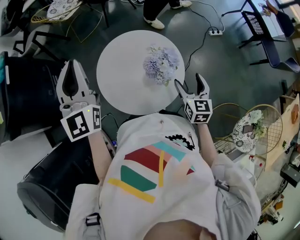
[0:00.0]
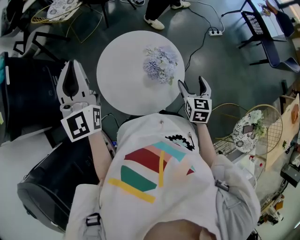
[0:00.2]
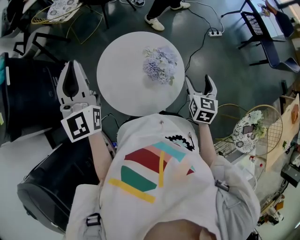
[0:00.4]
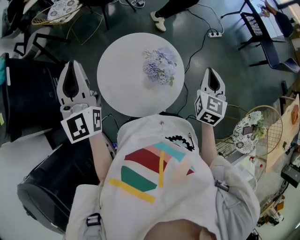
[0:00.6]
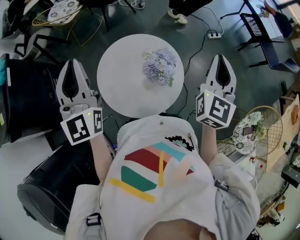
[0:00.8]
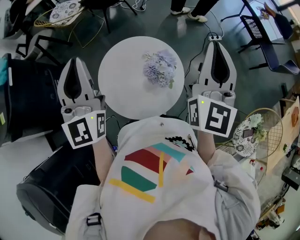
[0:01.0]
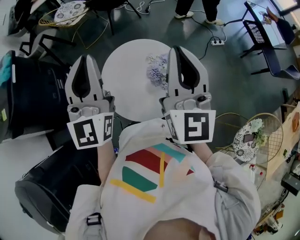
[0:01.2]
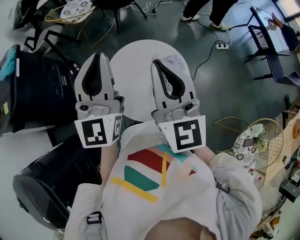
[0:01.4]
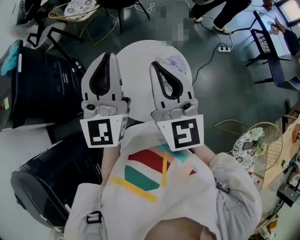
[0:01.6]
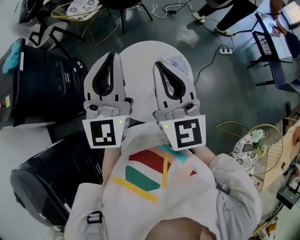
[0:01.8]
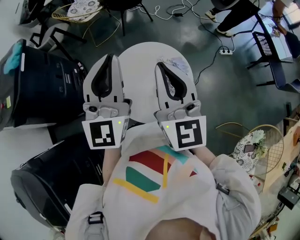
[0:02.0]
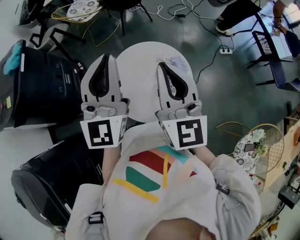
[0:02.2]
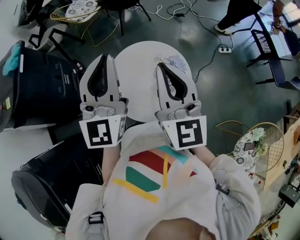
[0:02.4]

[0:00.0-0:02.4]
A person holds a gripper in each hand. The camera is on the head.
0:00.0 to 0:01.2: The right gripper goes approximately 30 cm upward, tilts its fingers some 30 degrees upward, and closes its fingers. The left gripper moves upward and to the right, approximately 10 cm.
0:01.2 to 0:02.4: The right gripper is displaced to the left by about 5 cm.

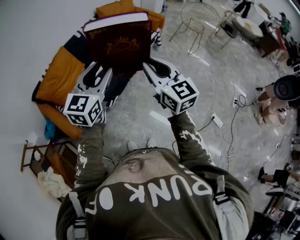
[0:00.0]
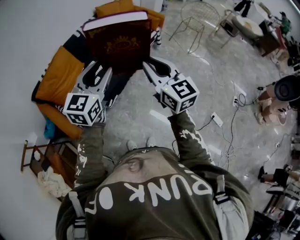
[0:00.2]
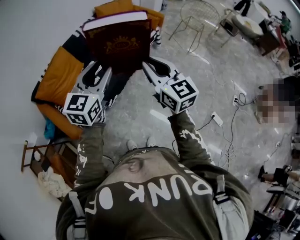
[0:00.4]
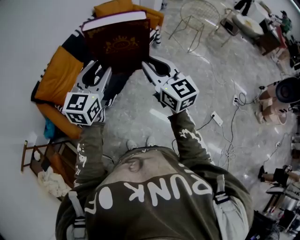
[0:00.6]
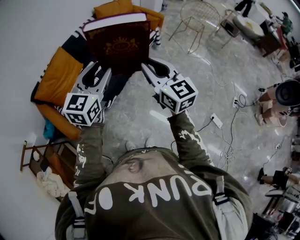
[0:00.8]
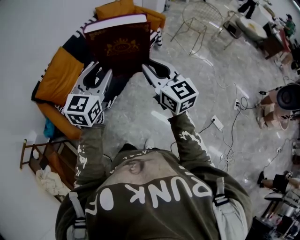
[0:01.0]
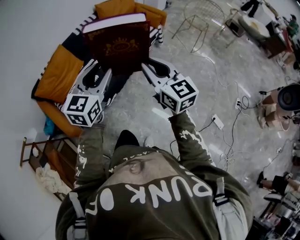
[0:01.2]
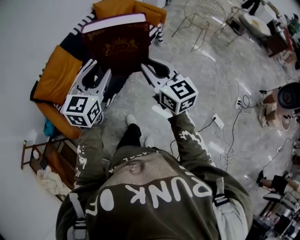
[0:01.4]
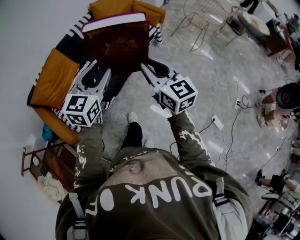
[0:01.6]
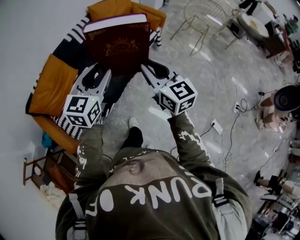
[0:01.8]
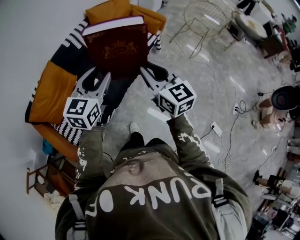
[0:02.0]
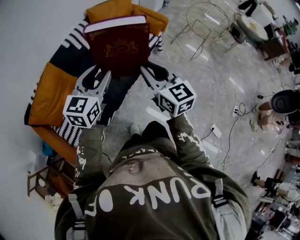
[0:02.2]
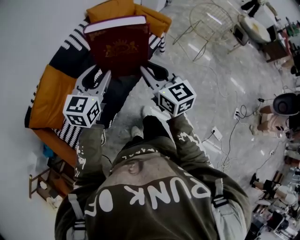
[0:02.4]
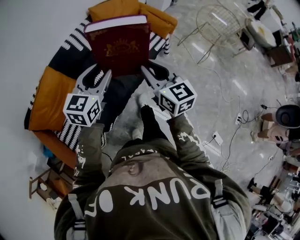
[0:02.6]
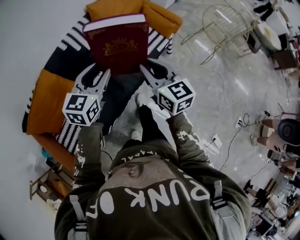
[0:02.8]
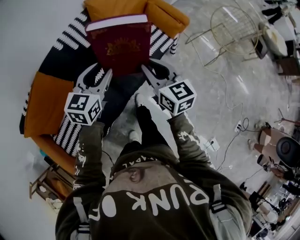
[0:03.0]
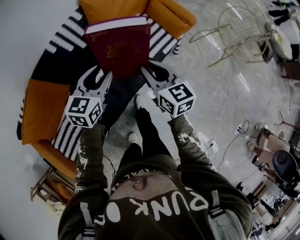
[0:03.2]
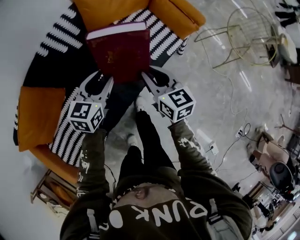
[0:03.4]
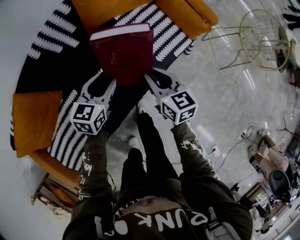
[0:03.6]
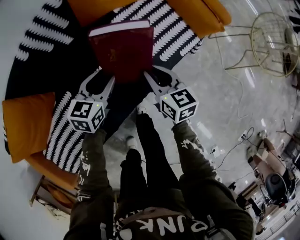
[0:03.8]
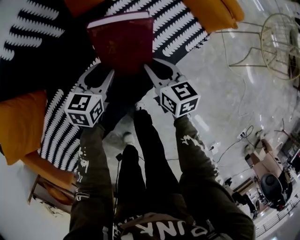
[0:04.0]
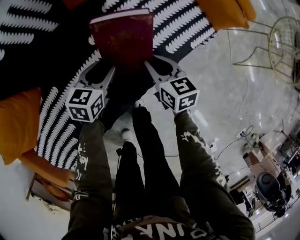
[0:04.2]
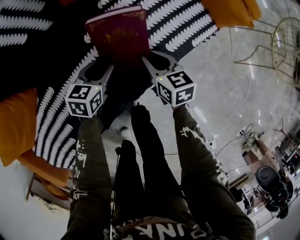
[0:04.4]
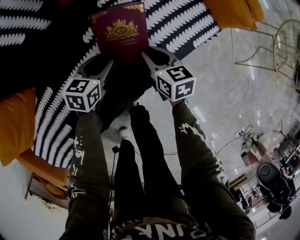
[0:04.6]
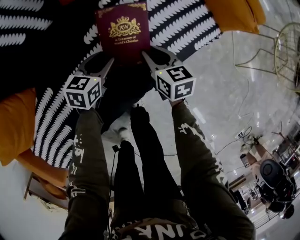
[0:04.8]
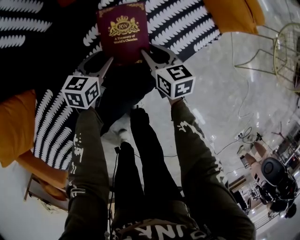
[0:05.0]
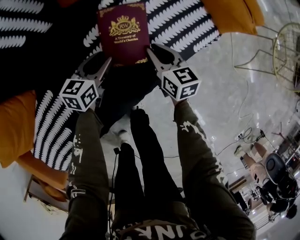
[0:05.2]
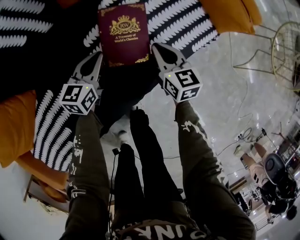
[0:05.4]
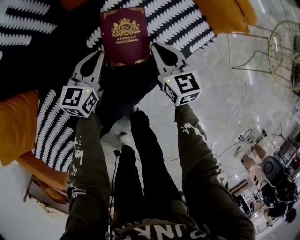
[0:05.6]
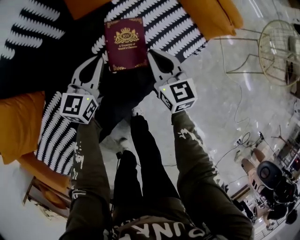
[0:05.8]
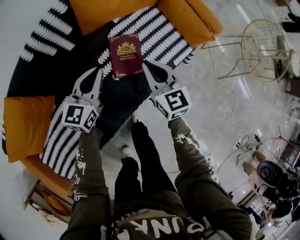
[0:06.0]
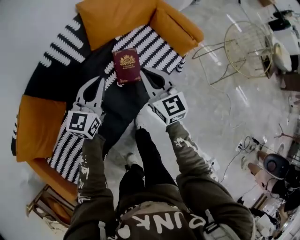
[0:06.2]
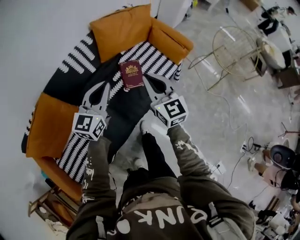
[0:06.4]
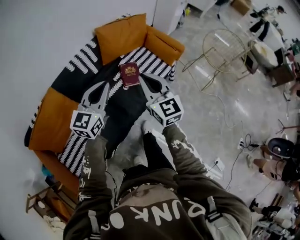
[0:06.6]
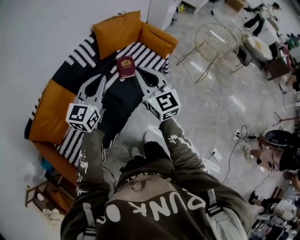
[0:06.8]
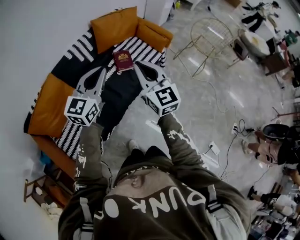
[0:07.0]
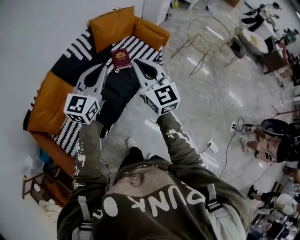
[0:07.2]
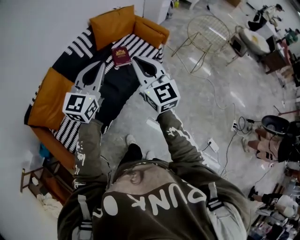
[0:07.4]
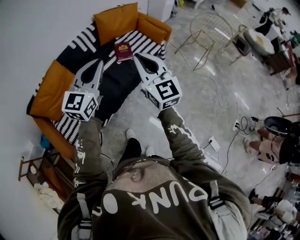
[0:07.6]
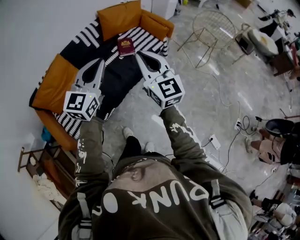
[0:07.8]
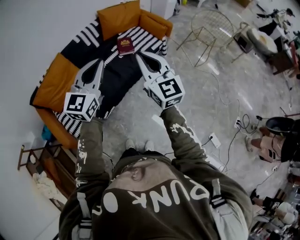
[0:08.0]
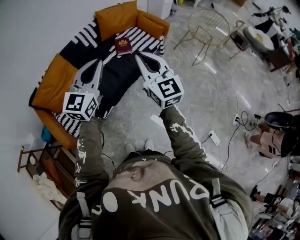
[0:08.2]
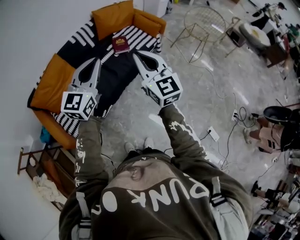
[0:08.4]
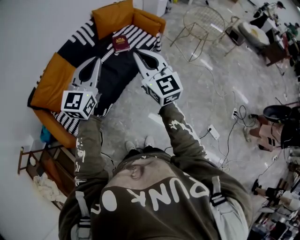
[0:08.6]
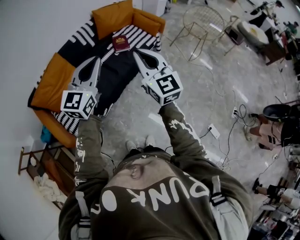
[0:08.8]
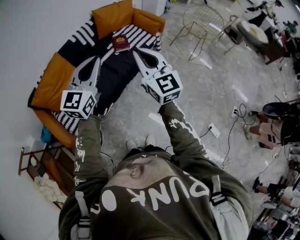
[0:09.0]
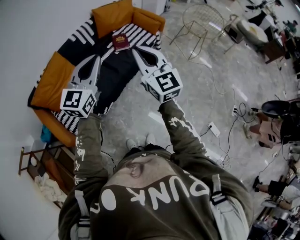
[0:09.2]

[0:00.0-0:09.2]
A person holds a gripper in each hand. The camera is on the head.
0:00.0 to 0:01.6: The two grippers go some 15 cm forward, to the right and downward.
0:01.6 to 0:03.0: The pair of grippers is taken forward, some 50 cm.
0:03.0 to 0:04.6: The right gripper heads downward and forward, covering roughly 60 cm, and changes its angle by roughly 30 degrees, while the left gripper is displaced downward by some 50 cm, and rotates some 30 degrees.
0:04.6 to 0:06.2: Both grippers travel together upward, roughly 40 cm. The left gripper tips its fingers upward by about 30 degrees, and closes up, while the right gripper swivels some 40 degrees.
0:06.2 to 0:07.6: Both grippers are carried backward, approximately 50 cm. The grippers both shift upward by roughly 35 cm.
0:07.6 to 0:09.2: The grippers both shift backward by some 10 cm.

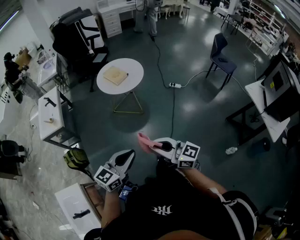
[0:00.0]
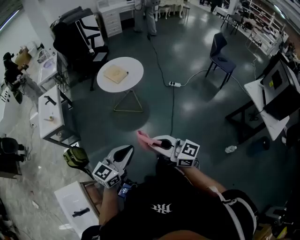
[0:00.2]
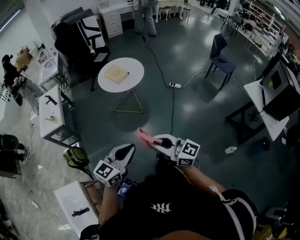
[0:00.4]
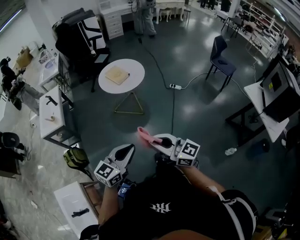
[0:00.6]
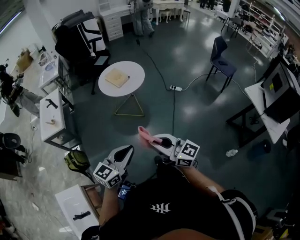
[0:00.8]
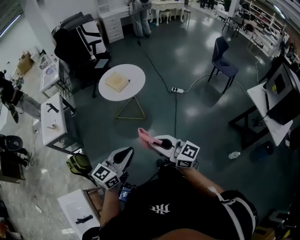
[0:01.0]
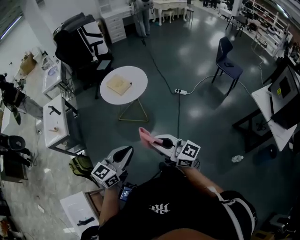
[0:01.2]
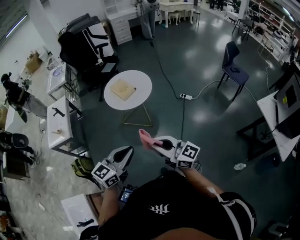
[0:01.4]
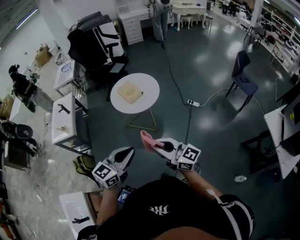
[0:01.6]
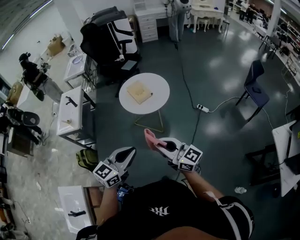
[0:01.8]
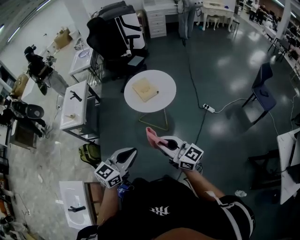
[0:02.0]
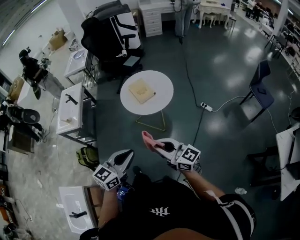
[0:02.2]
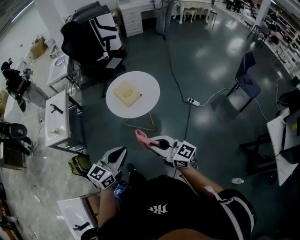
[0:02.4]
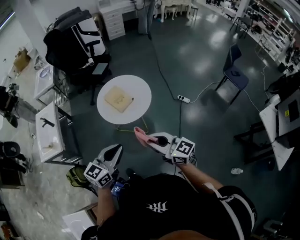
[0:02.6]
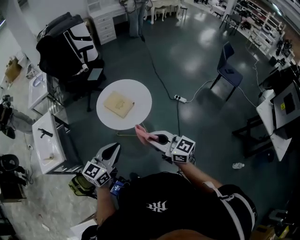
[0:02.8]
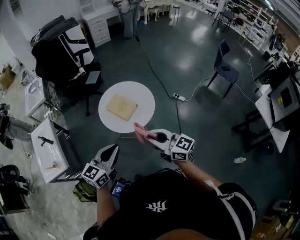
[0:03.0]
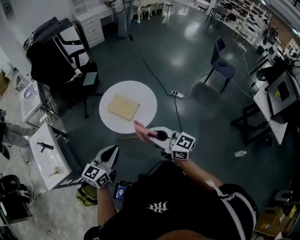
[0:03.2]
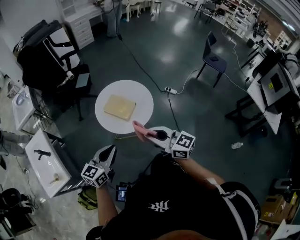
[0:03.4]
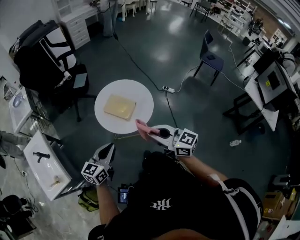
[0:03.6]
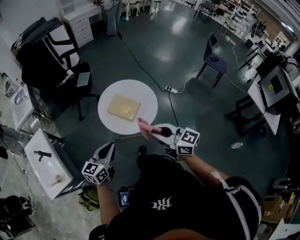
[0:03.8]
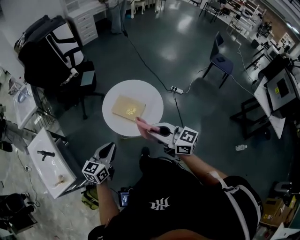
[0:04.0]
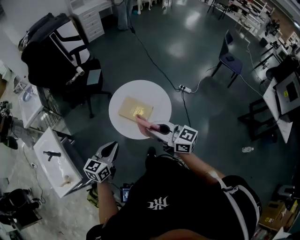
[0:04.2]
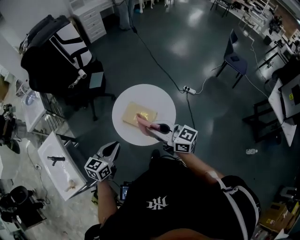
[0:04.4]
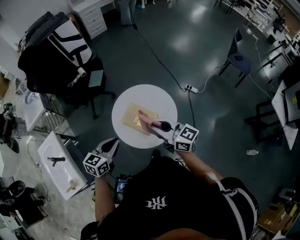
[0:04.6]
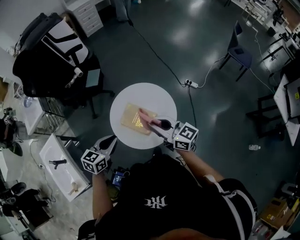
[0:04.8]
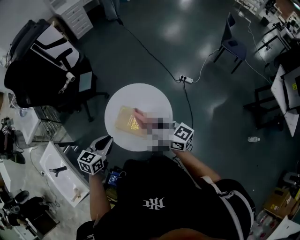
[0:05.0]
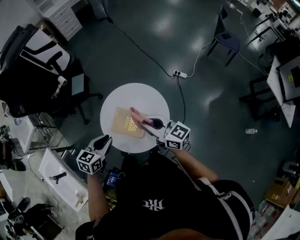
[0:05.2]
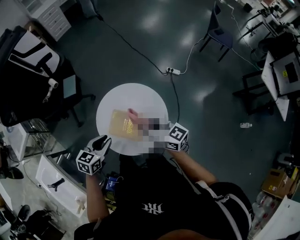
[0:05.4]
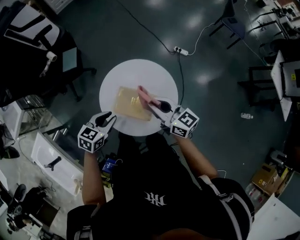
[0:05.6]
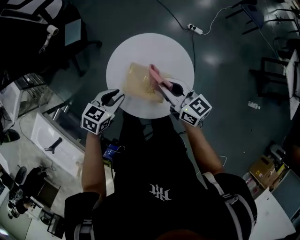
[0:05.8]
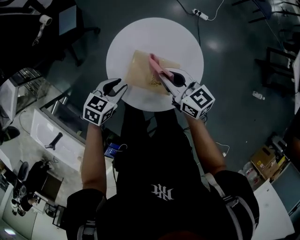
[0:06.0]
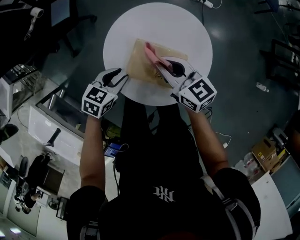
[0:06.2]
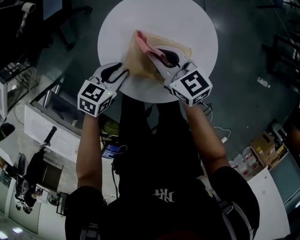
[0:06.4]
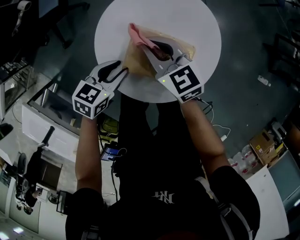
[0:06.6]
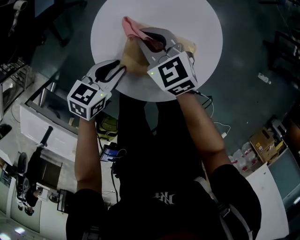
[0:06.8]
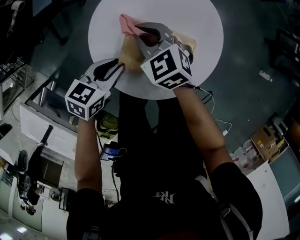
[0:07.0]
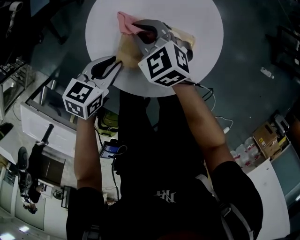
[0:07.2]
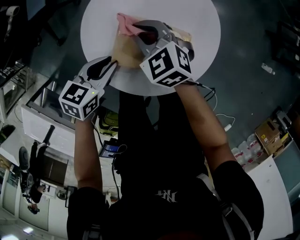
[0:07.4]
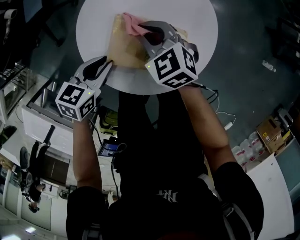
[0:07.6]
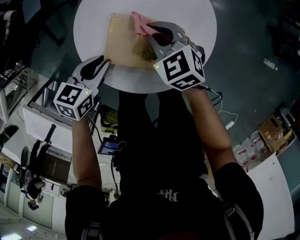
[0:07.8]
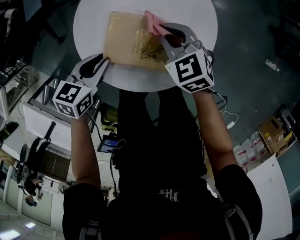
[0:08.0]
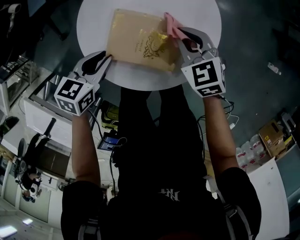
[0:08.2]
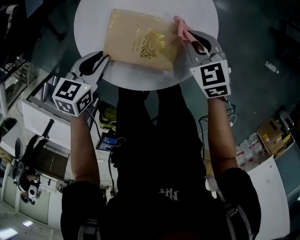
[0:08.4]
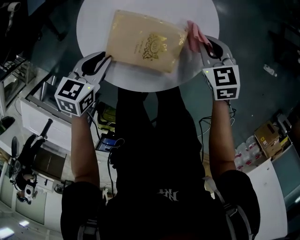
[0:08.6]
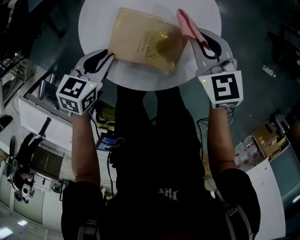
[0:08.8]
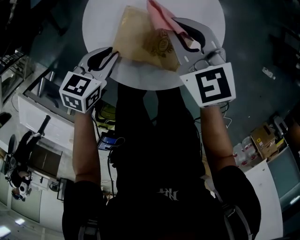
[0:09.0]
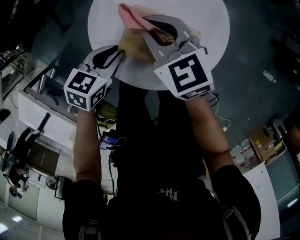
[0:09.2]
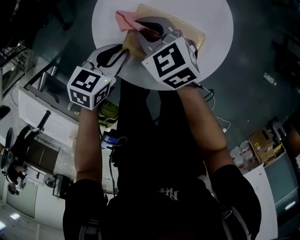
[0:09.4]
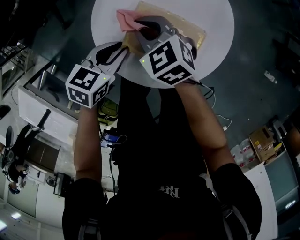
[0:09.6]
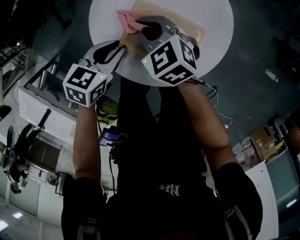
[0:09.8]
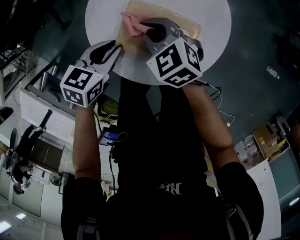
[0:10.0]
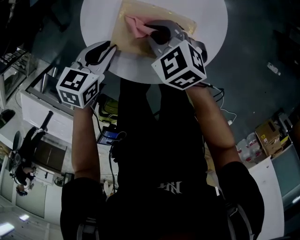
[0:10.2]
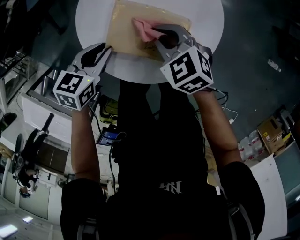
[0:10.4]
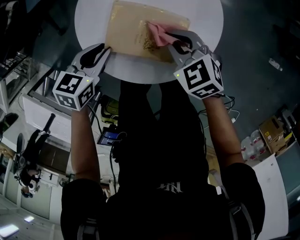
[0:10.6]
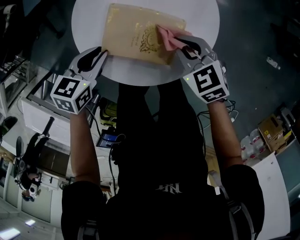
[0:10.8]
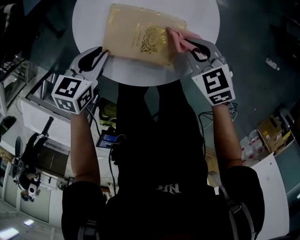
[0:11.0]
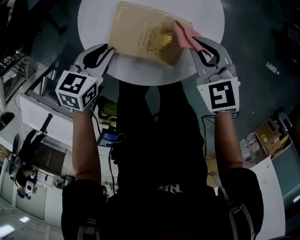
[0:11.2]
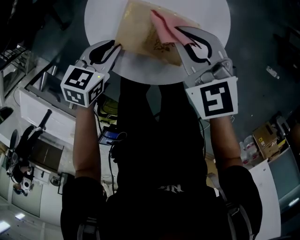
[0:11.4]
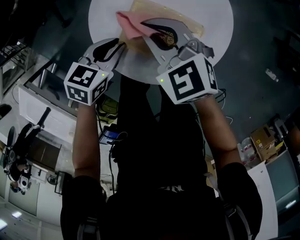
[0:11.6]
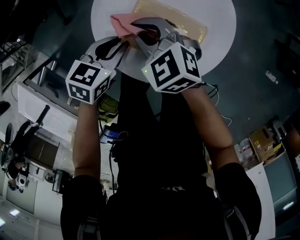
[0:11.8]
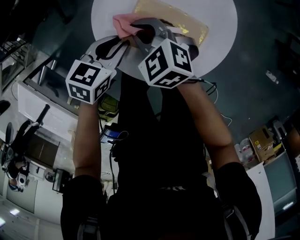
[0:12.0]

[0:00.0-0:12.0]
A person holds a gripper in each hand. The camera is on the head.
0:00.0 to 0:01.6: The two grippers go about 20 cm forward.
0:01.6 to 0:03.0: The right gripper travels forward by some 30 cm, while the left gripper is displaced forward and to the left by approximately 35 cm.
0:03.0 to 0:04.4: The grippers both shift forward and to the left by some 25 cm.
0:04.4 to 0:06.0: Both grippers move downward, some 25 cm. The left gripper turns by approximately 30 degrees, and opens its fingers. Meanwhile the right gripper changes its angle by about 30 degrees.
0:06.0 to 0:07.6: The left gripper moves downward, some 10 cm; the right gripper goes some 15 cm downward, and changes its angle by some 40 degrees.
0:07.6 to 0:09.0: The right gripper travels upward by roughly 10 cm, and moves approximately 20 cm to the right and comes back.
0:09.0 to 0:10.4: The right gripper goes roughly 10 cm downward and backward, and reaches about 10 cm to the left, then returns.
0:10.4 to 0:12.0: The right gripper goes approximately 10 cm to the left.
